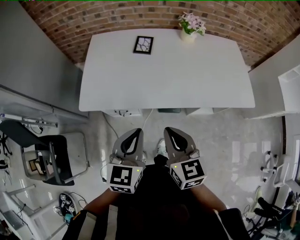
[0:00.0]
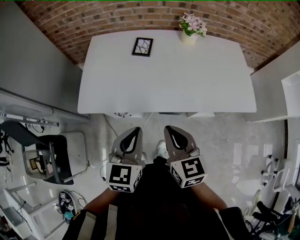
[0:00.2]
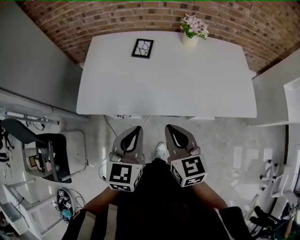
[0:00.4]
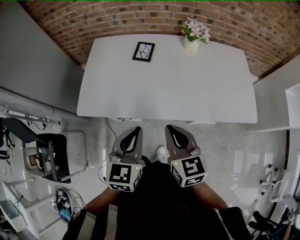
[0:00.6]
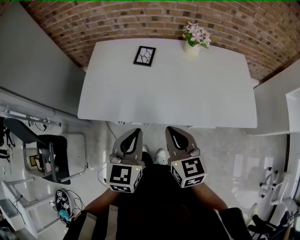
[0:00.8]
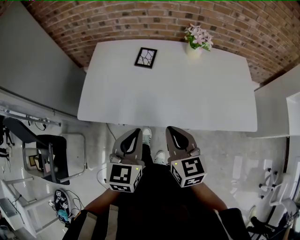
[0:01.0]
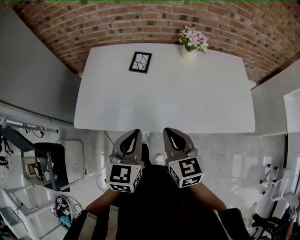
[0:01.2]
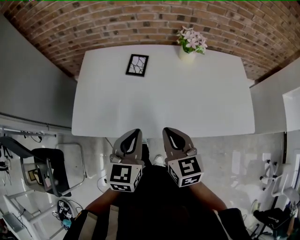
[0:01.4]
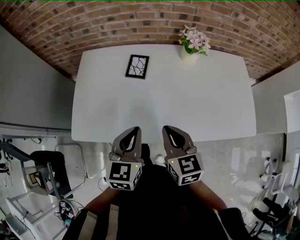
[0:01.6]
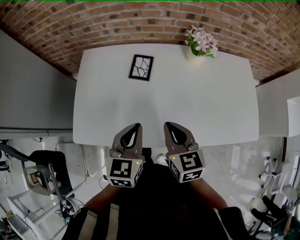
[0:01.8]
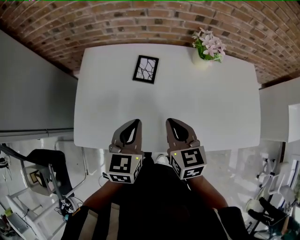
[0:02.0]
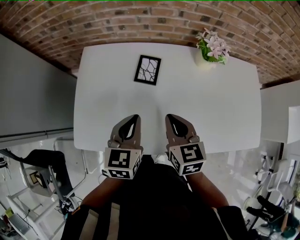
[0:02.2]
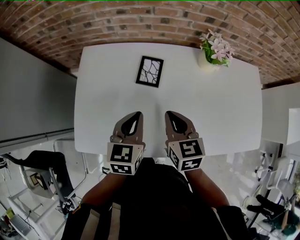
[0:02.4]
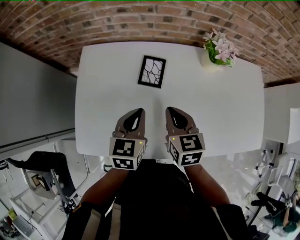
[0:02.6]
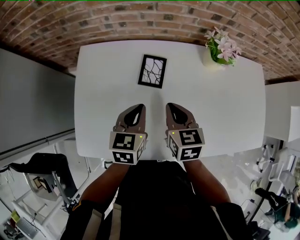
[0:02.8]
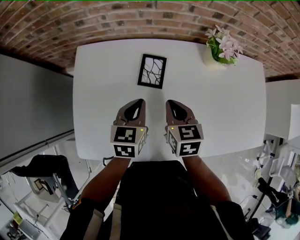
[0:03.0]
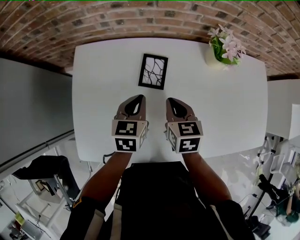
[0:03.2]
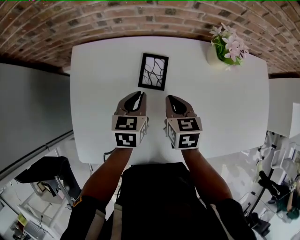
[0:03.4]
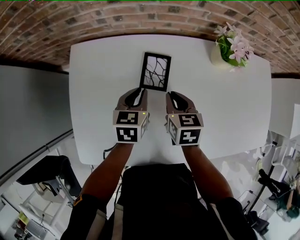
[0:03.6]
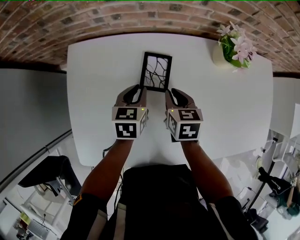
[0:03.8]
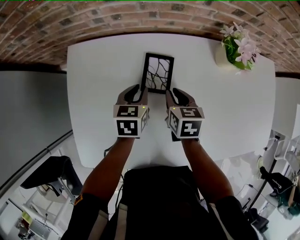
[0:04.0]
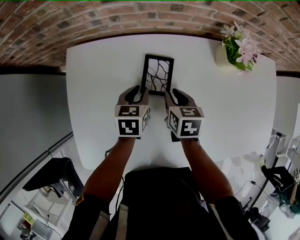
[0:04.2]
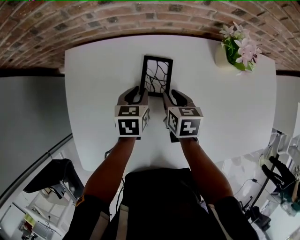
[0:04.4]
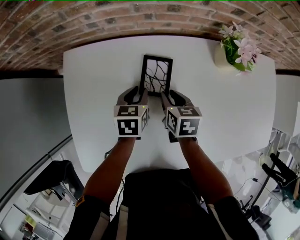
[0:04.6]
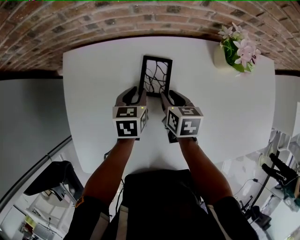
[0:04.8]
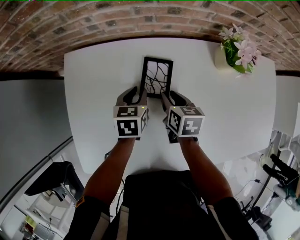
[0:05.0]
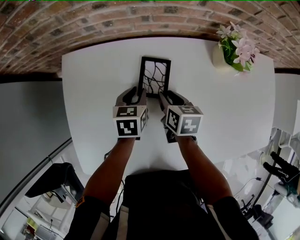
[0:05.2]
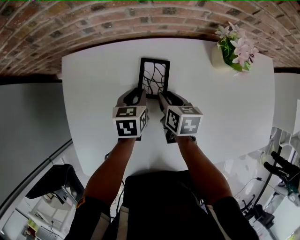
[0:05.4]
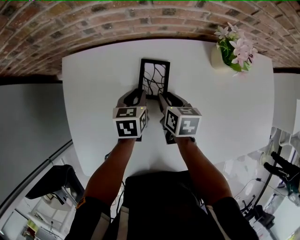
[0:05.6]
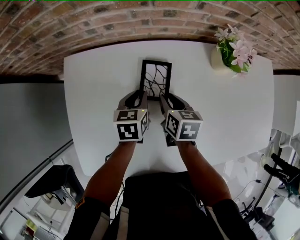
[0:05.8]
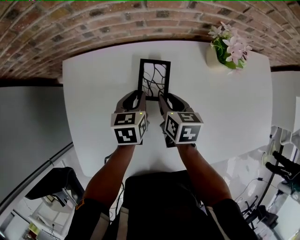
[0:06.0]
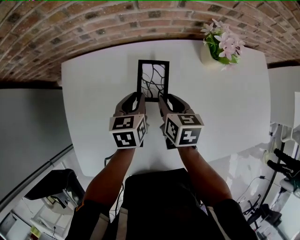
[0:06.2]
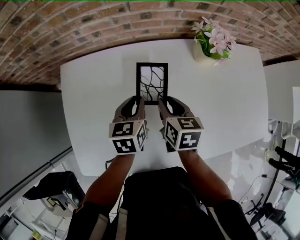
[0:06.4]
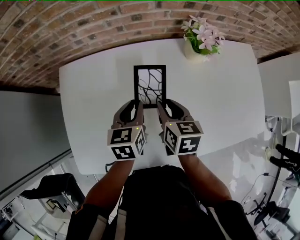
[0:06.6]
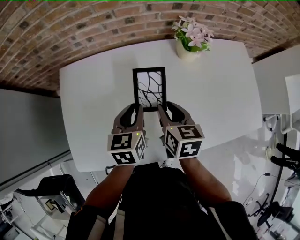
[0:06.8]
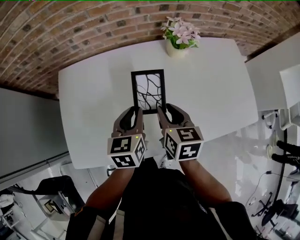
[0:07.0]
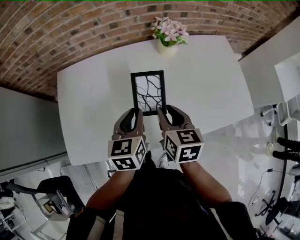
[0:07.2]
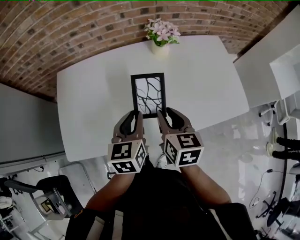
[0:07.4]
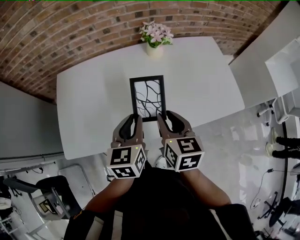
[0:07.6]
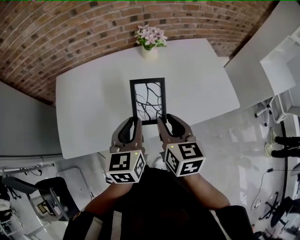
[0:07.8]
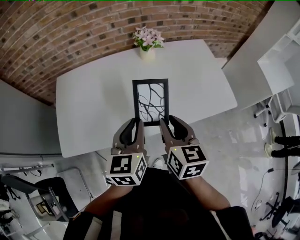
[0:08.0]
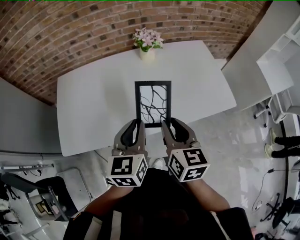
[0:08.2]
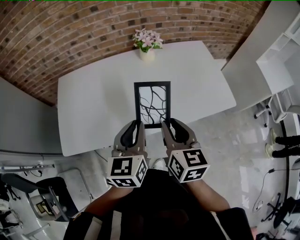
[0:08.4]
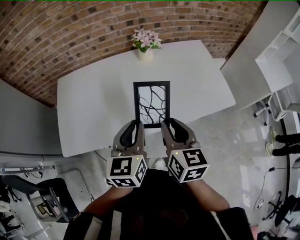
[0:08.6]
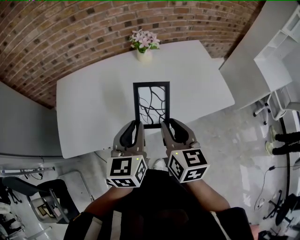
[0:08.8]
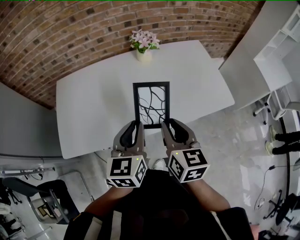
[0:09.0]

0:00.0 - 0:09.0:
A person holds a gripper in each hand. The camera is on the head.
0:00.0 - 0:01.6: Both grippers travel together forward, roughly 20 cm.
0:01.6 - 0:03.0: The grippers both shift forward and downward by about 25 cm.
0:03.0 - 0:04.4: Both grippers move downward and forward, some 15 cm. The left gripper opens; the right gripper opens its fingers.
0:04.4 - 0:06.0: There are only small adjustments of the grippers.
0:06.0 - 0:07.6: Both grippers move backward, upward and to the right, roughly 35 cm. The right gripper swivels some 20 degrees. Meanwhile the left gripper changes its angle by some 20 degrees.
0:07.6 - 0:09.0: The left gripper moves backward, upward and to the right, roughly 10 cm. The right gripper moves backward, to the right and upward, roughly 10 cm.

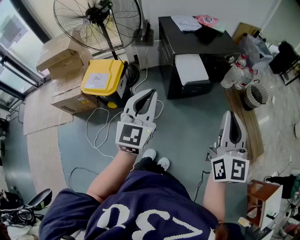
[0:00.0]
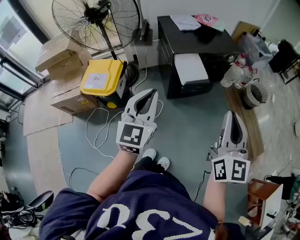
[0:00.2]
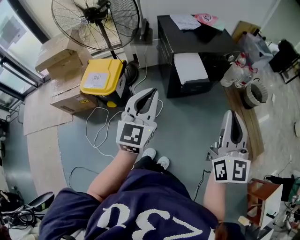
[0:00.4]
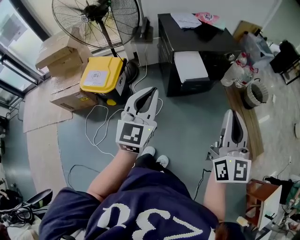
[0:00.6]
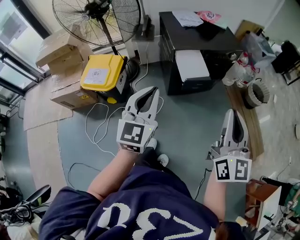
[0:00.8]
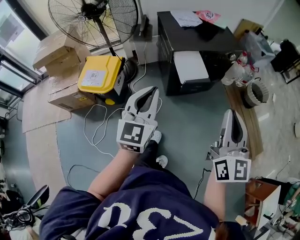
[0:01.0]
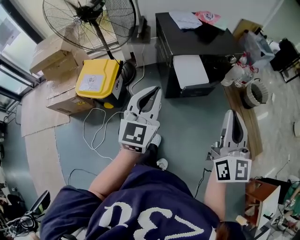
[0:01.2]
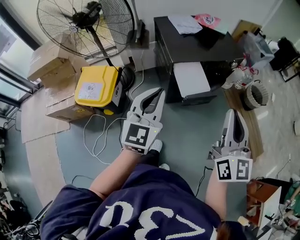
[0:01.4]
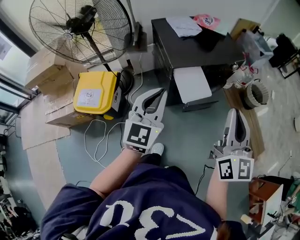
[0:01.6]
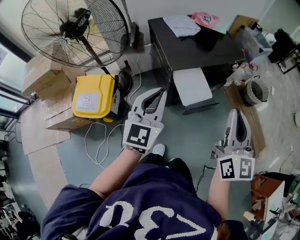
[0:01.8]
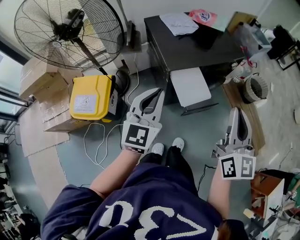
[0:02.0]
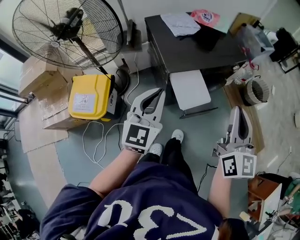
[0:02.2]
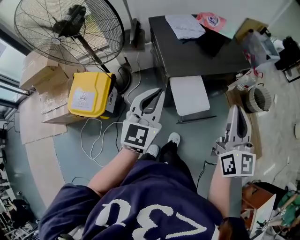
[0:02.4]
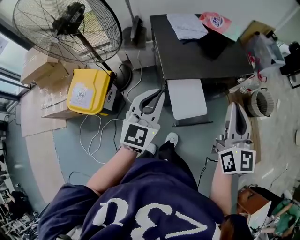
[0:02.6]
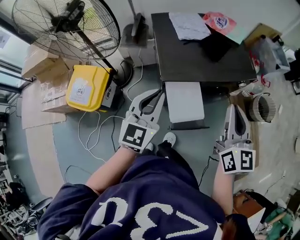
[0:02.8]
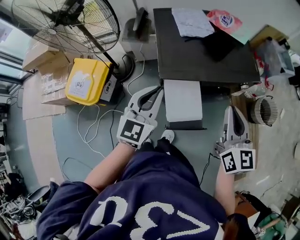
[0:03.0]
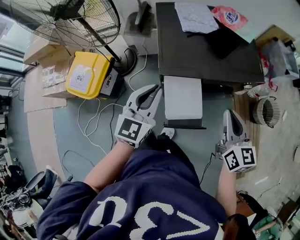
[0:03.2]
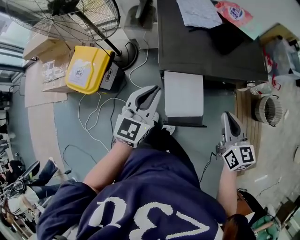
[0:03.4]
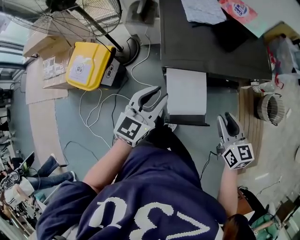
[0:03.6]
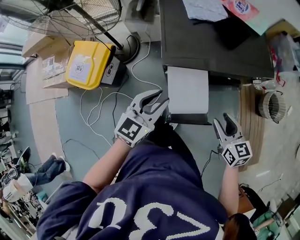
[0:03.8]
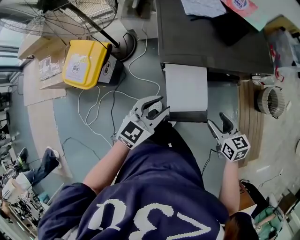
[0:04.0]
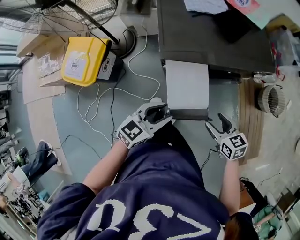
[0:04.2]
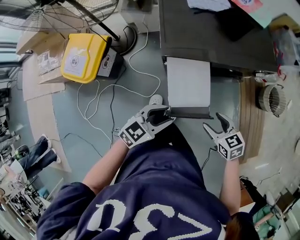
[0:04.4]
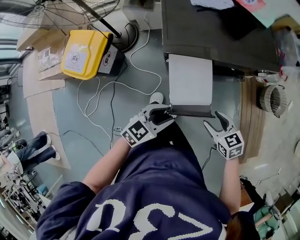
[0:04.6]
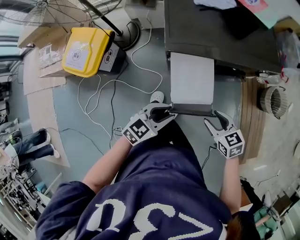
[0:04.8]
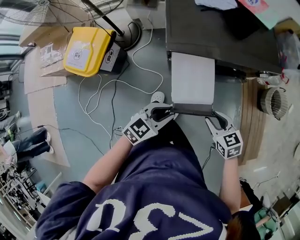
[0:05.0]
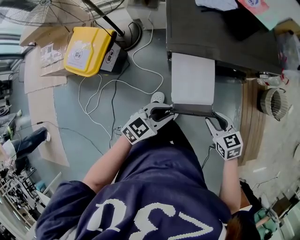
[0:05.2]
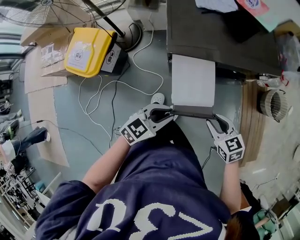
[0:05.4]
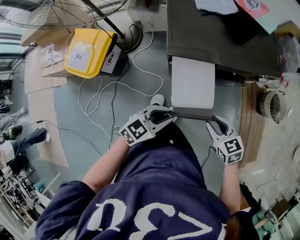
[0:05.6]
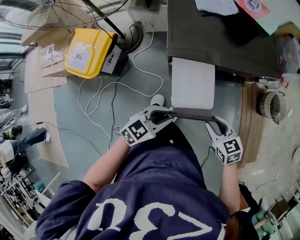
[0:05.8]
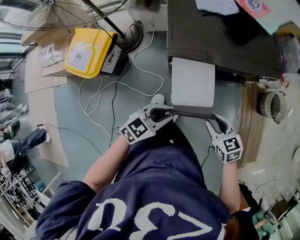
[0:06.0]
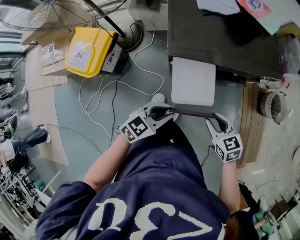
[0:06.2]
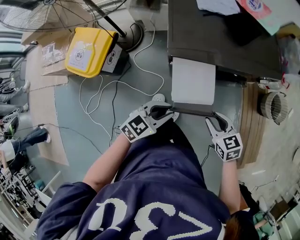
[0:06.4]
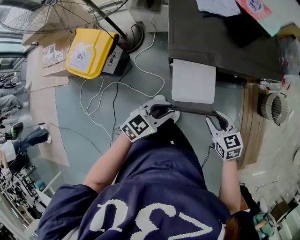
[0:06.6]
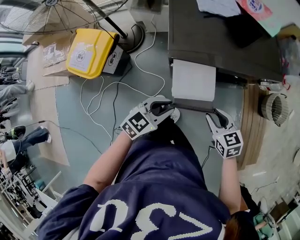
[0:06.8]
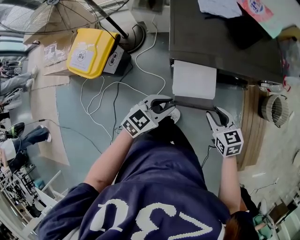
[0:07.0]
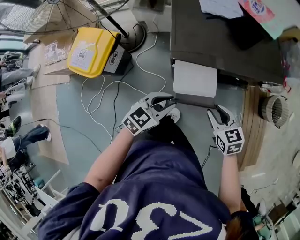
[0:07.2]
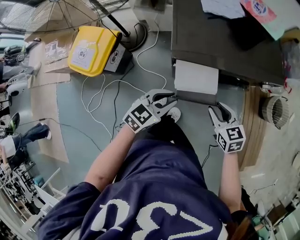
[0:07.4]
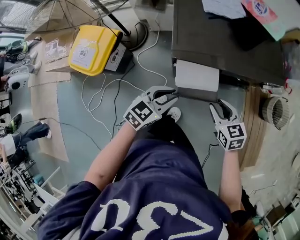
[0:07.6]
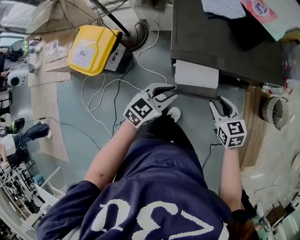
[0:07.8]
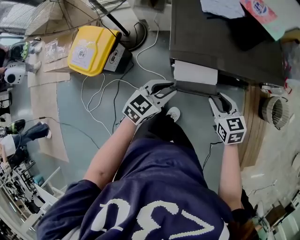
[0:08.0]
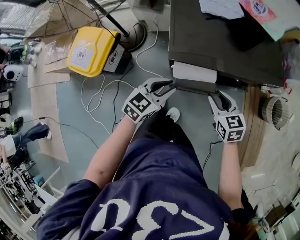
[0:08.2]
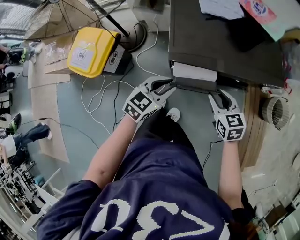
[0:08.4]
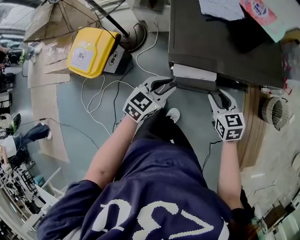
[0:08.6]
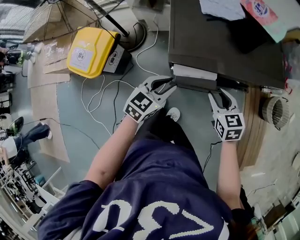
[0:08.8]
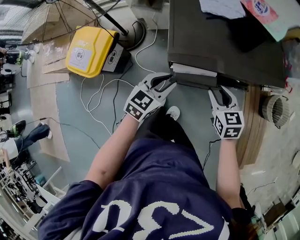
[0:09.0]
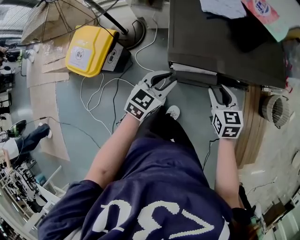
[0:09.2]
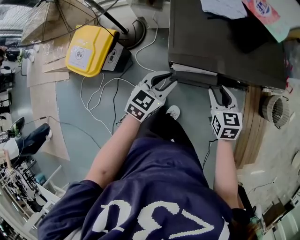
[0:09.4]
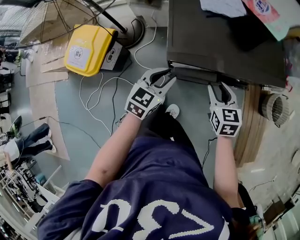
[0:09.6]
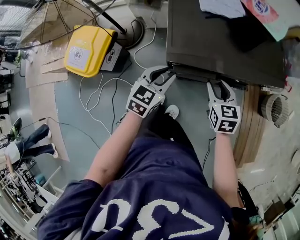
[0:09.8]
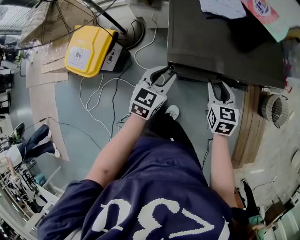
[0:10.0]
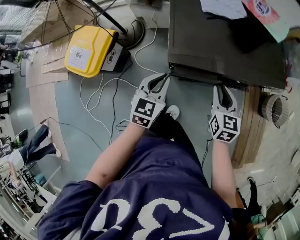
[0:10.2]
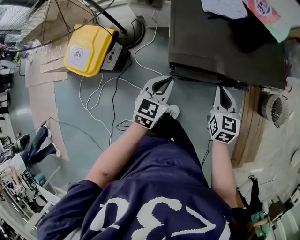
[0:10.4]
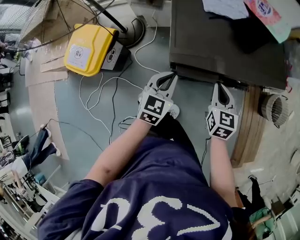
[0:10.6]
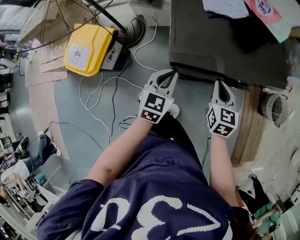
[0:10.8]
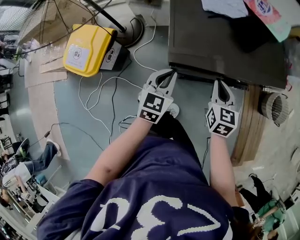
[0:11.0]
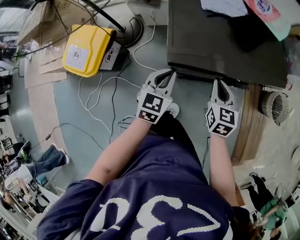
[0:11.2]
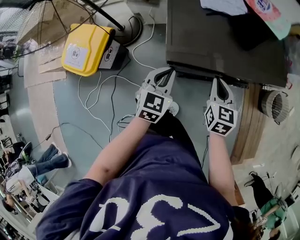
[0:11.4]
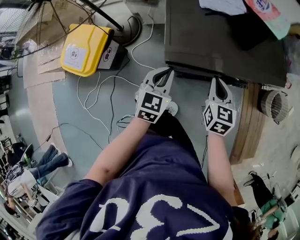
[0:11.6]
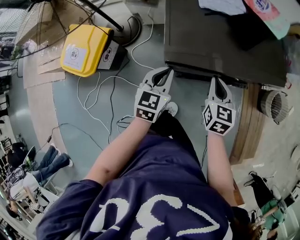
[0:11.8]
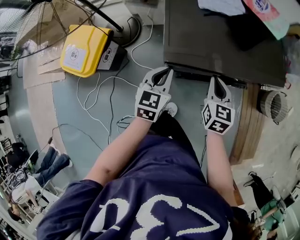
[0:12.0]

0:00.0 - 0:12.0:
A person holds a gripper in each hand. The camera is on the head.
0:00.0 - 0:01.6: The grippers both shift forward by some 20 cm.
0:01.6 - 0:03.0: The left gripper shifts some 25 cm forward and downward. Meanwhile the right gripper goes approximately 30 cm forward, and turns by approximately 20 degrees.
0:03.0 - 0:04.4: The left gripper heads downward and backward, covering some 20 cm, swivels roughly 40 degrees, and opens its fingers, while the right gripper heads downward, covering approximately 30 cm, points its fingers some 40 degrees further downward, and opens up.
0:04.4 - 0:06.0: The right gripper closes.
0:06.0 - 0:07.6: Both grippers move forward, roughly 10 cm.
0:07.6 - 0:09.0: Both grippers move forward, roughly 10 cm.
0:09.0 - 0:10.4: The left gripper closes. The right gripper closes its fingers.
0:10.4 - 0:12.0: The grippers make only small movements.

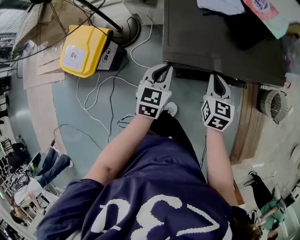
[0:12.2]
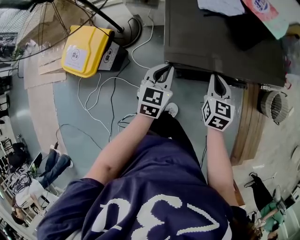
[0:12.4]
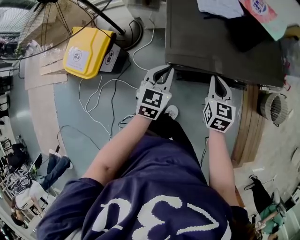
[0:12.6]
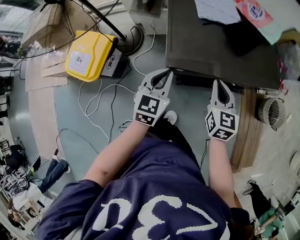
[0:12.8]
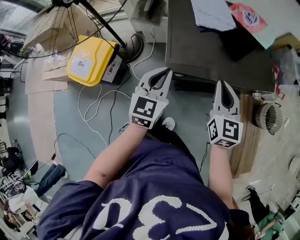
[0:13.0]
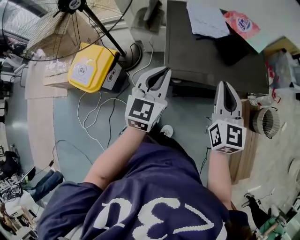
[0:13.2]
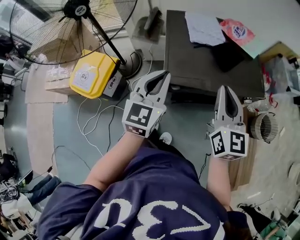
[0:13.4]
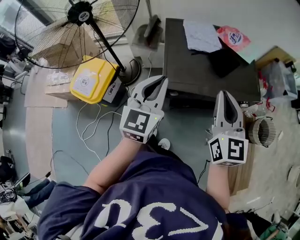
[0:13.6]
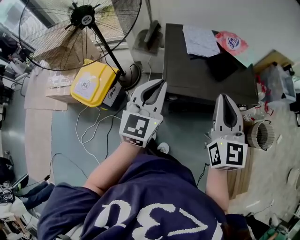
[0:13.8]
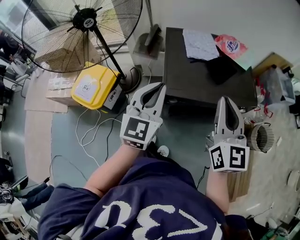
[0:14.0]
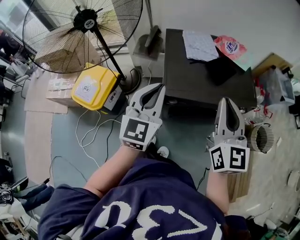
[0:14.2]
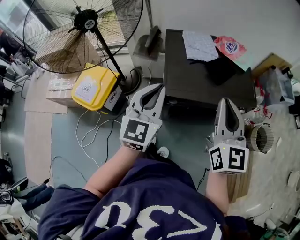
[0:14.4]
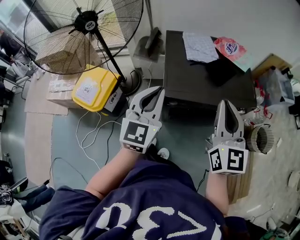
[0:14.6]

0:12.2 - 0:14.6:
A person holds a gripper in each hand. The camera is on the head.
0:12.2 - 0:13.4: Both grippers travel together upward, about 25 cm. The right gripper swivels roughly 30 degrees. The left gripper turns by roughly 20 degrees.
0:13.4 - 0:14.6: The two grippers go about 5 cm upward.
